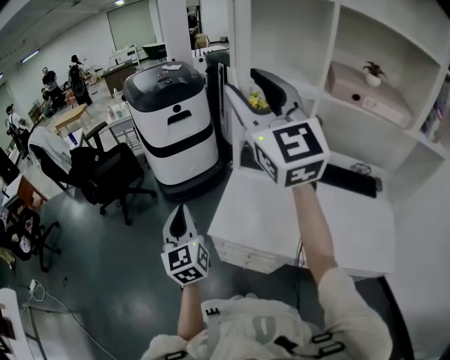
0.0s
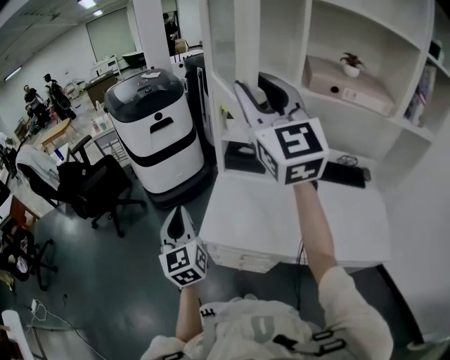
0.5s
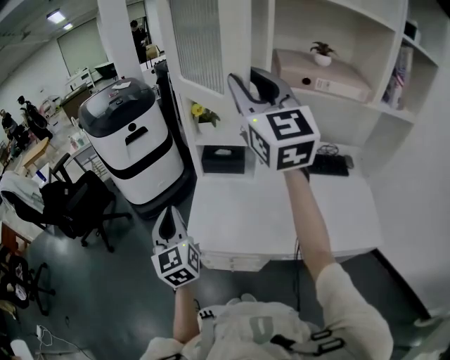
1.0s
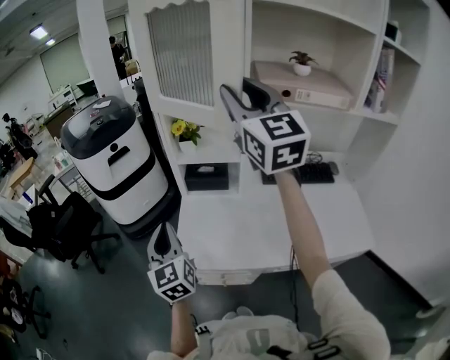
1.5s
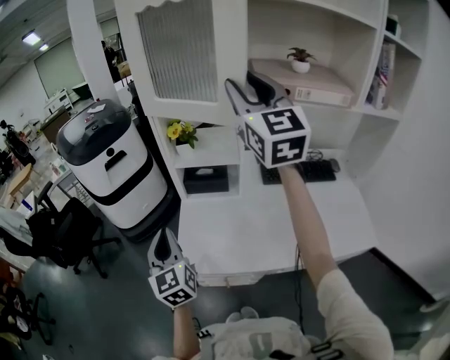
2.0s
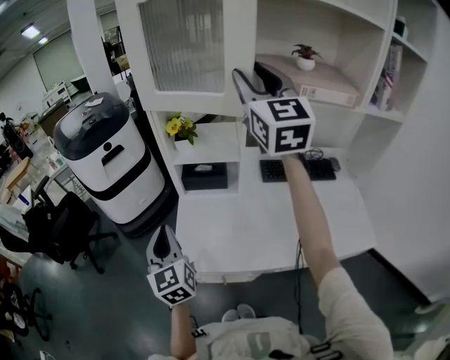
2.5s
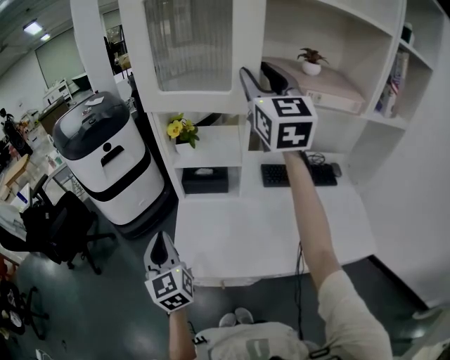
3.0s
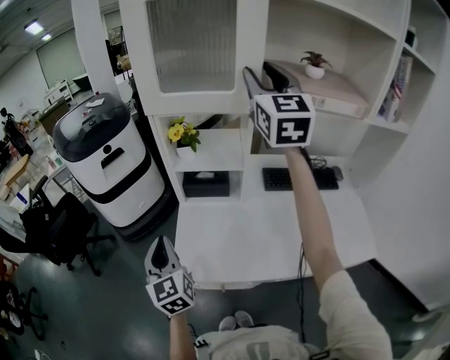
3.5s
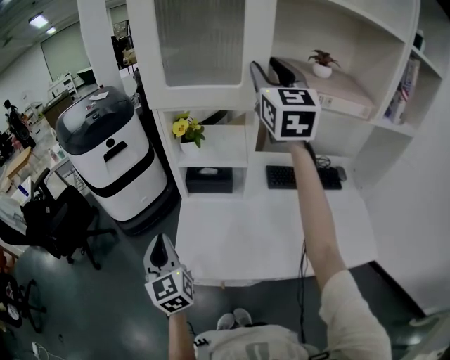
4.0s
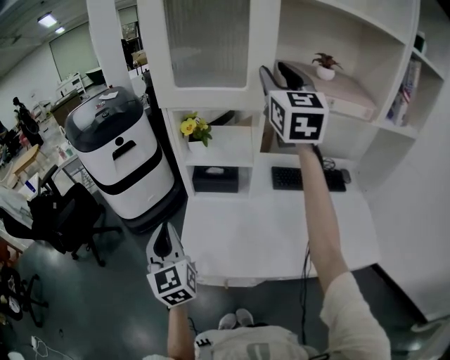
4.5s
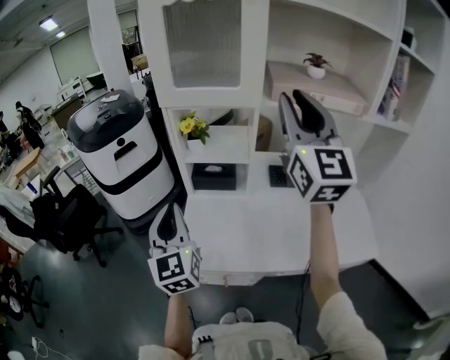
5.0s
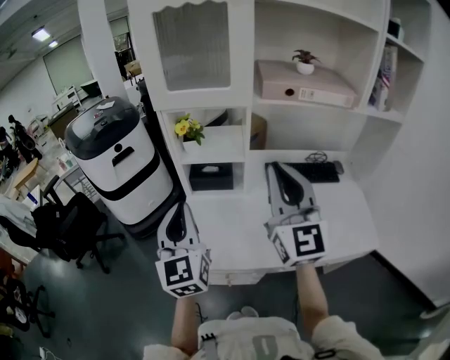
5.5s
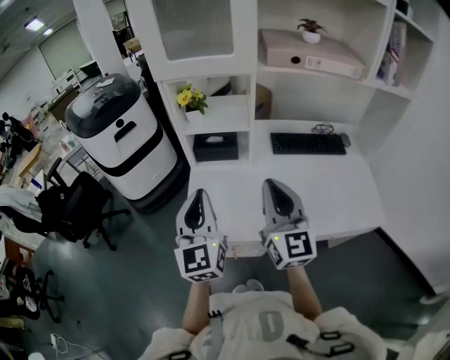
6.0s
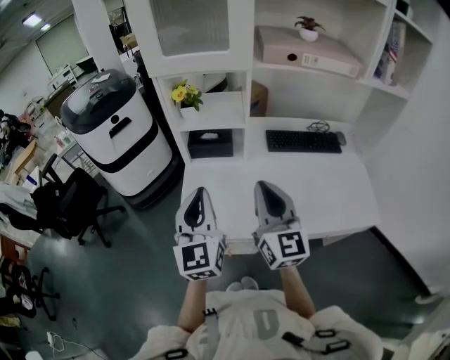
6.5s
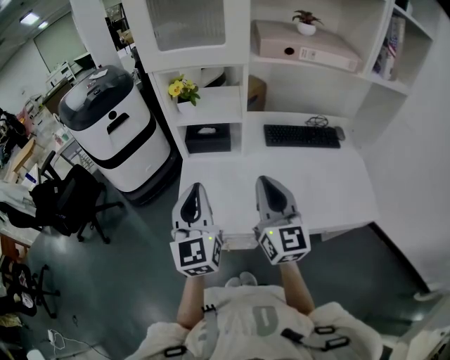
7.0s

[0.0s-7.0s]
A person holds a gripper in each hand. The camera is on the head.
0.0s to 2.0s: The left gripper moves to the right and forward, approximately 15 cm; the right gripper shifts roughly 20 cm to the right, and swivels approximately 20 degrees.
2.0s to 3.5s: The right gripper travels forward by approximately 10 cm.
3.5s to 5.0s: The right gripper travels backward by approximately 15 cm. Meanwhile the left gripper travels upward by roughly 10 cm.
5.0s to 7.0s: The left gripper moves to the right, roughly 5 cm. Meanwhile the right gripper is displaced downward and backward by some 30 cm, and turns by some 20 degrees.

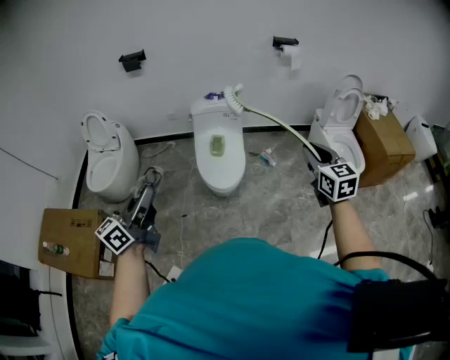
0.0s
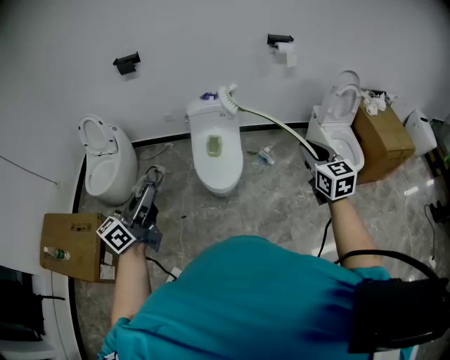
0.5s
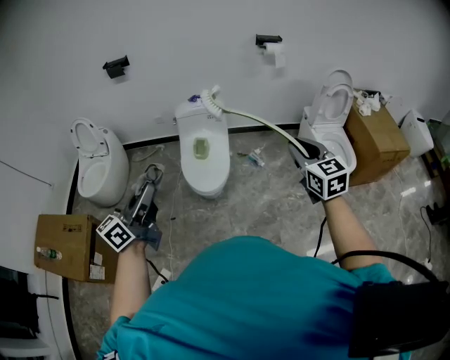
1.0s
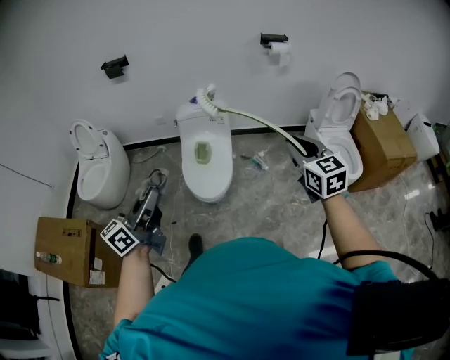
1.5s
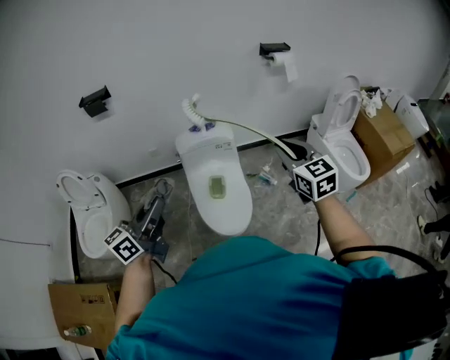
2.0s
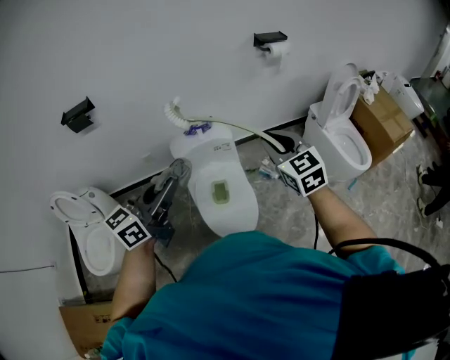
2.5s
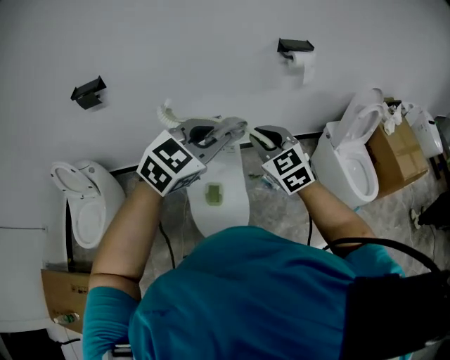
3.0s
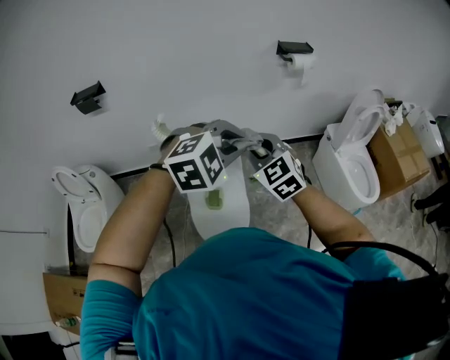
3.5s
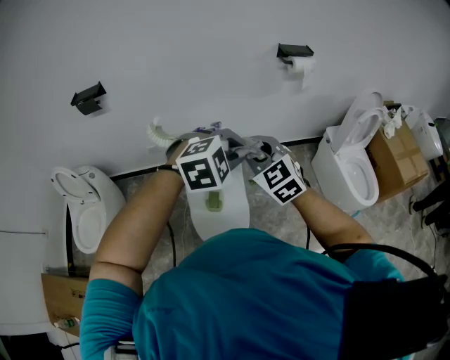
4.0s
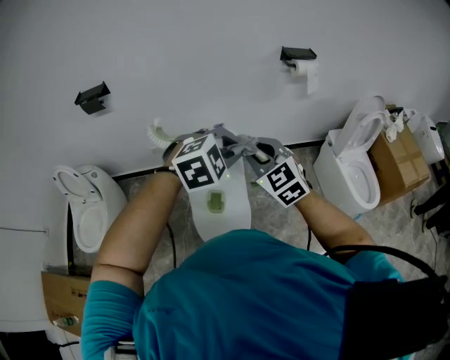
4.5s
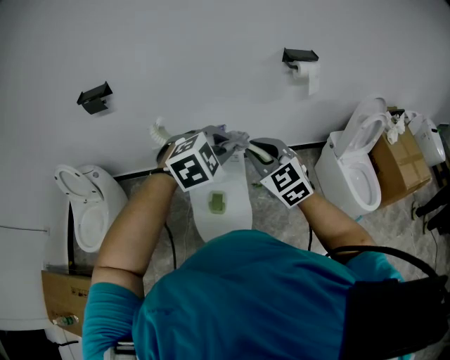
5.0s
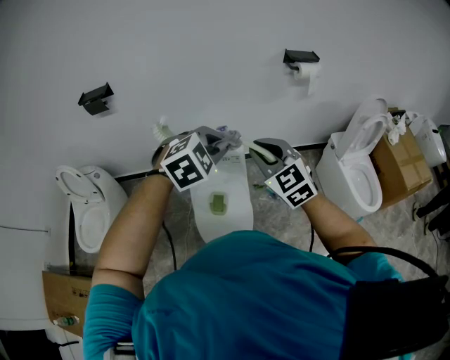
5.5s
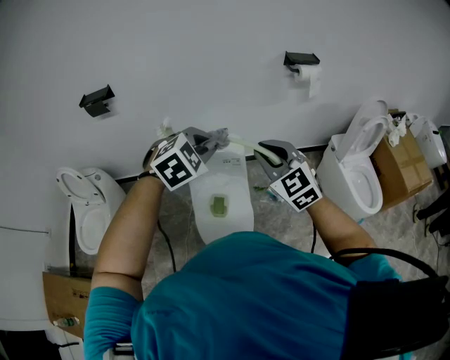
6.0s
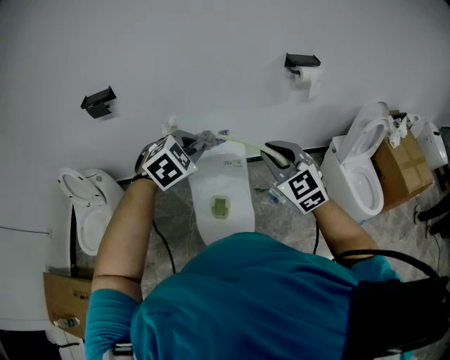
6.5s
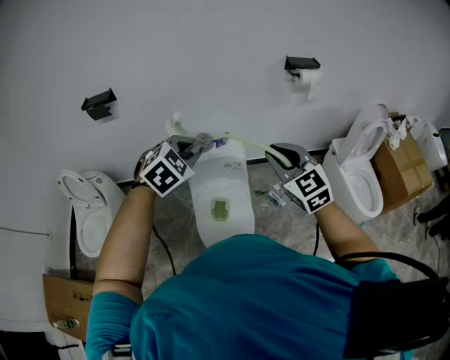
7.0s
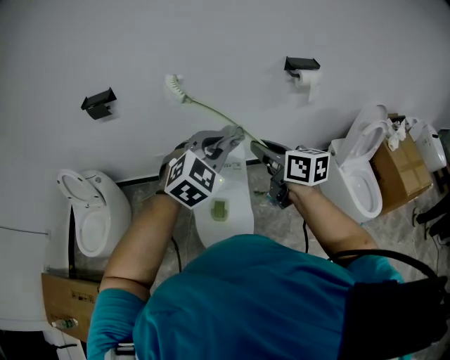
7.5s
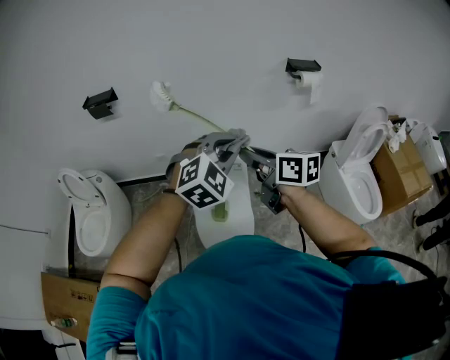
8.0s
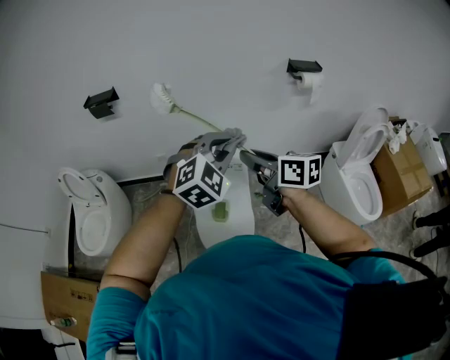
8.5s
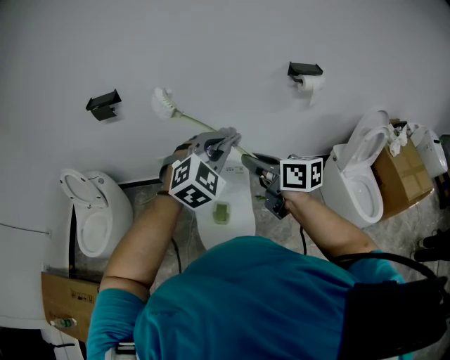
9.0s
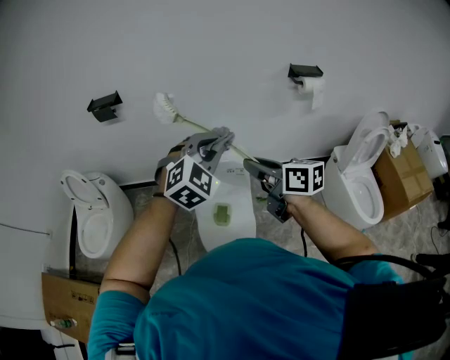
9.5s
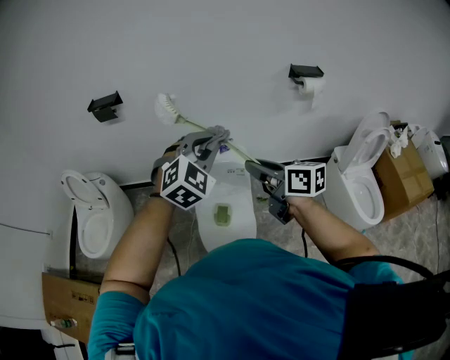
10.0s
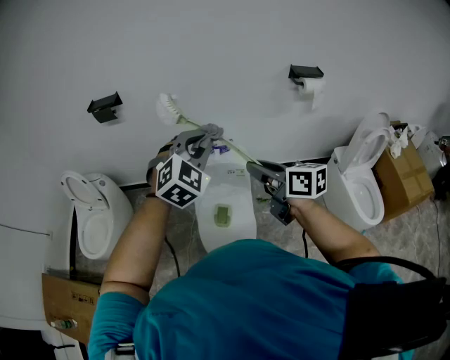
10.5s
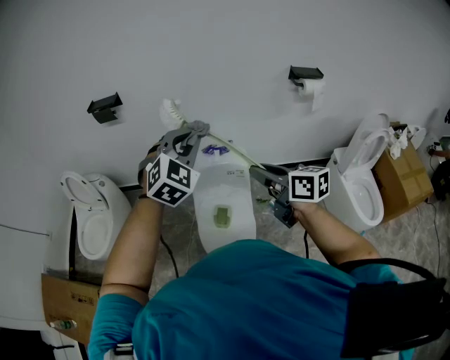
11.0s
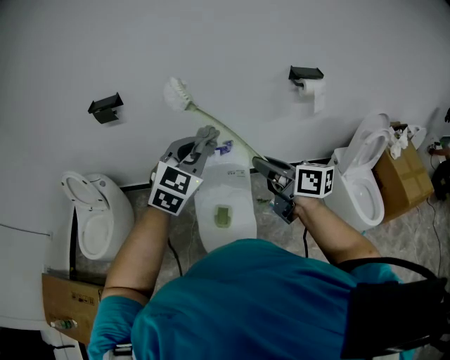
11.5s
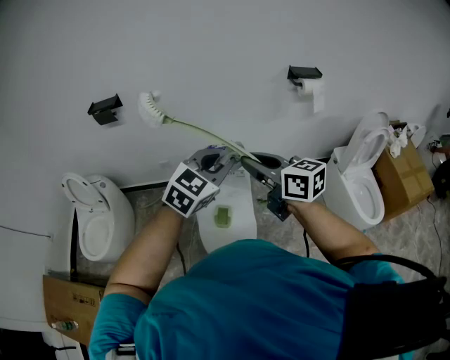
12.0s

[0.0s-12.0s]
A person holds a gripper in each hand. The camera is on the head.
0.0s to 2.0s: The left gripper heads forward, covering some 35 cm. Meanwhile the right gripper goes about 30 cm forward and to the left.
2.0s to 4.0s: The right gripper goes roughly 15 cm forward and to the left, and rotates about 20 degrees. The left gripper goes approximately 35 cm forward and to the right, and tilts its fingers about 50 degrees downward.
4.0s to 6.0s: The left gripper travels to the left by about 10 cm.
6.0s to 8.0s: The right gripper twists approximately 60 degrees clockwise, seen from behind. The left gripper goes approximately 5 cm to the right.
8.0s to 10.0s: The left gripper moves to the left, roughly 5 cm.
10.0s to 12.0s: The left gripper changes place by approximately 5 cm, and rotates approximately 30 degrees.

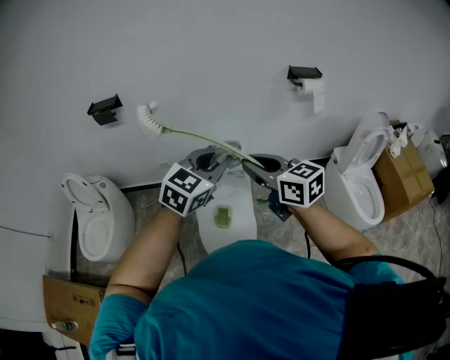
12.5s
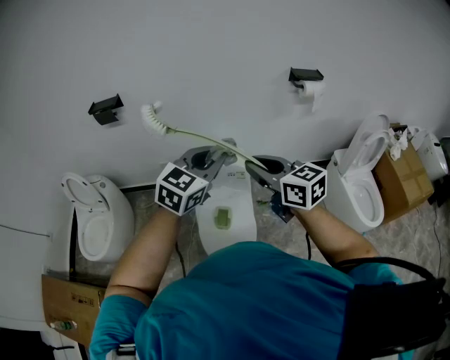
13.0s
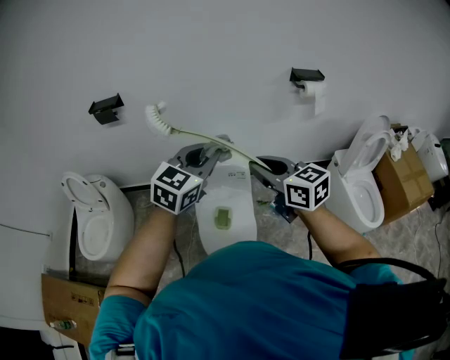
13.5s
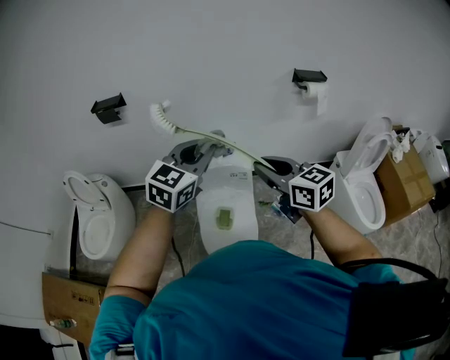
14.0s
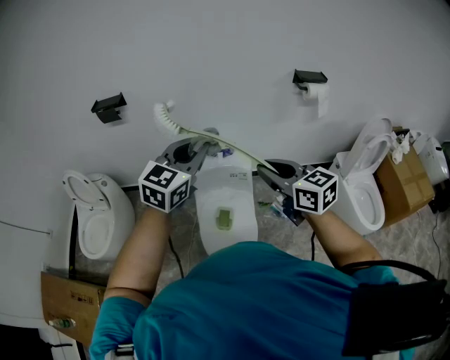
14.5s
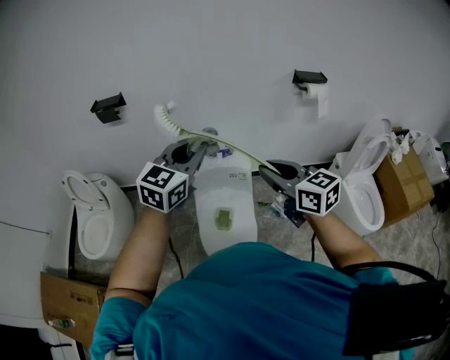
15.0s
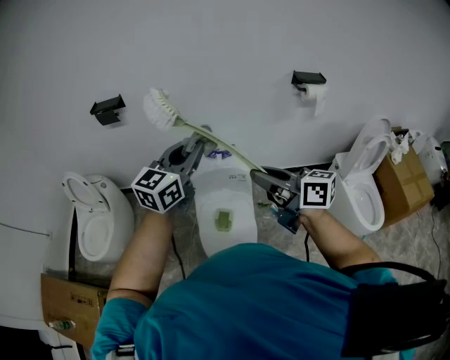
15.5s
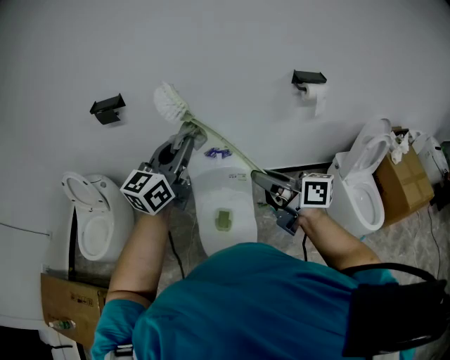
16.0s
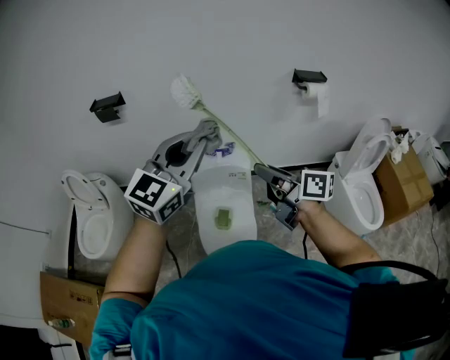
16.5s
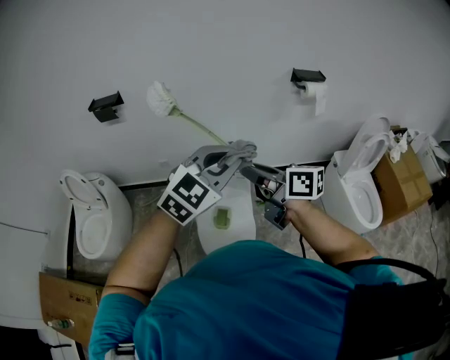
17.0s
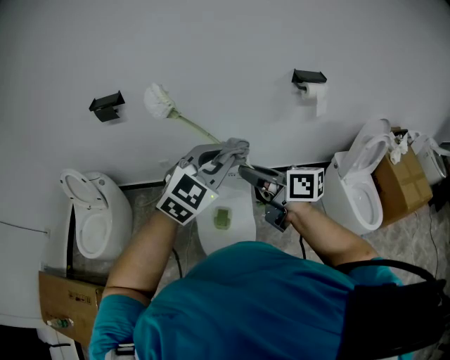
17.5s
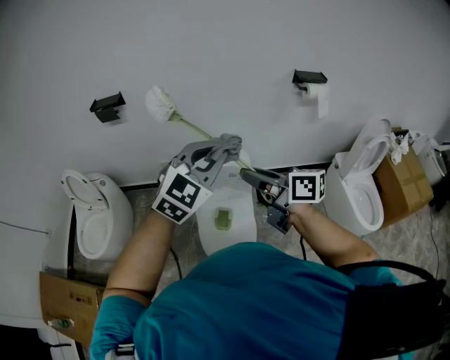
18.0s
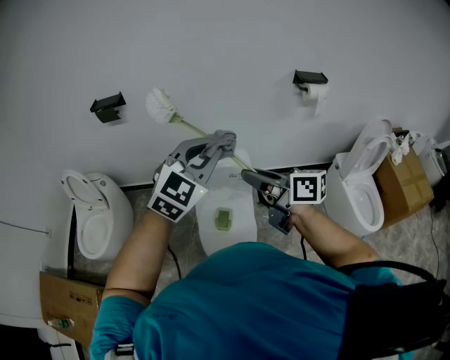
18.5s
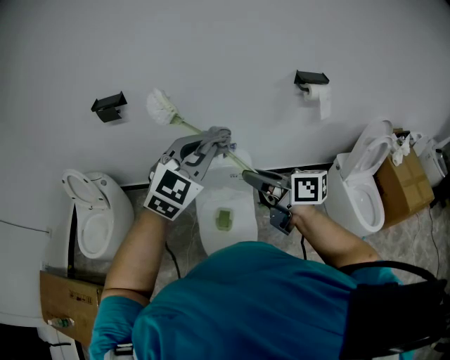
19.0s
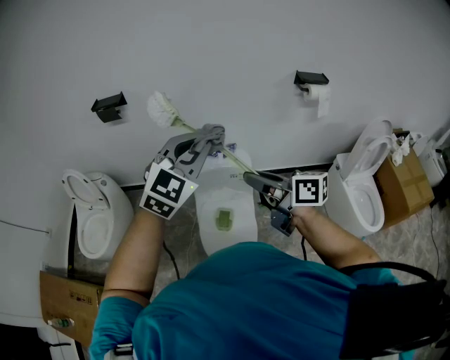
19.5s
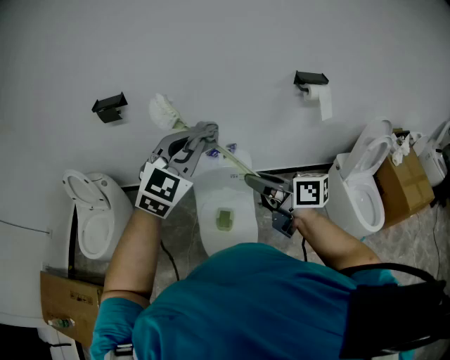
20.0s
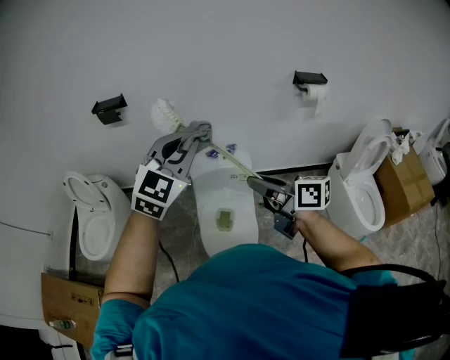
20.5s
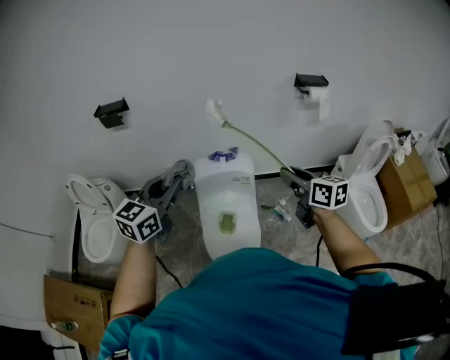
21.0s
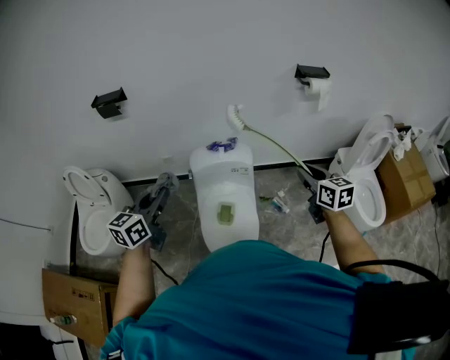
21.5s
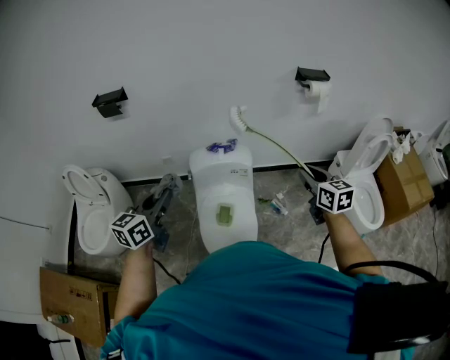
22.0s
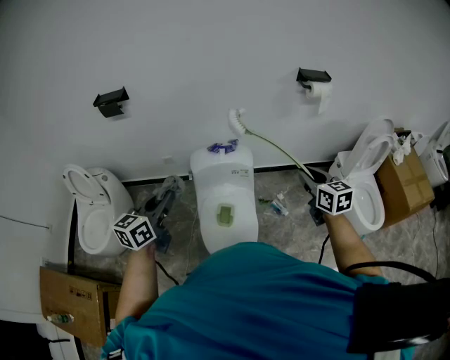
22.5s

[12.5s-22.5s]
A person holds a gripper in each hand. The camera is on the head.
12.5s to 14.5s: The left gripper is displaced to the left by some 5 cm.
14.5s to 16.5s: The right gripper rotates approximately 40 degrees, while the left gripper travels upward by about 5 cm.
16.5s to 18.5s: The left gripper turns by about 20 degrees.
18.5s to 20.5s: The left gripper travels to the left by roughly 5 cm.
20.5s to 22.5s: The left gripper goes approximately 20 cm downward and to the left, and rotates around the line of its fingers by about 50 degrees, counterclockwise from behind, while the right gripper is displaced to the right and downward by some 20 cm, and swivels about 50 degrees.
